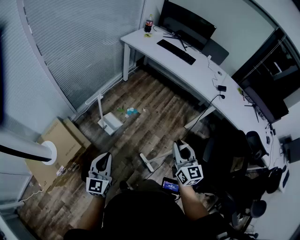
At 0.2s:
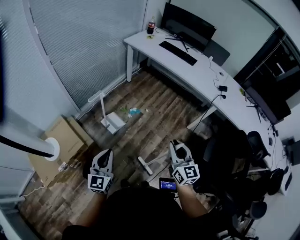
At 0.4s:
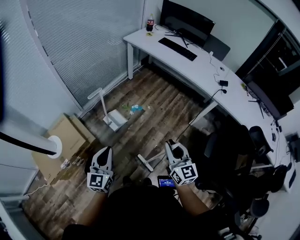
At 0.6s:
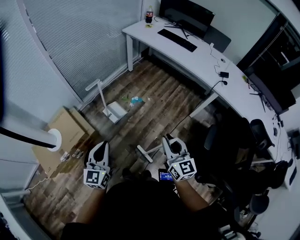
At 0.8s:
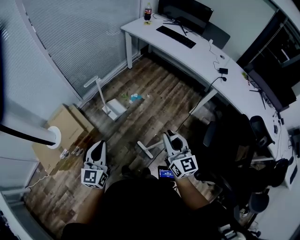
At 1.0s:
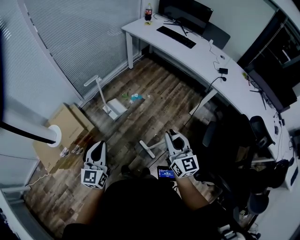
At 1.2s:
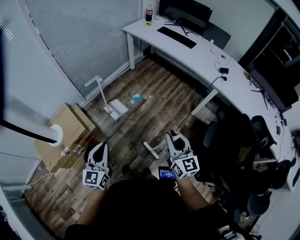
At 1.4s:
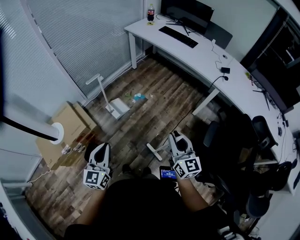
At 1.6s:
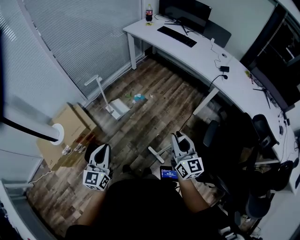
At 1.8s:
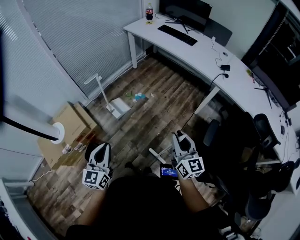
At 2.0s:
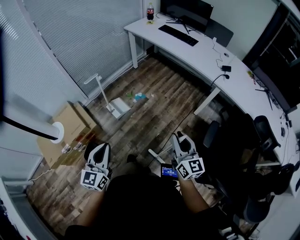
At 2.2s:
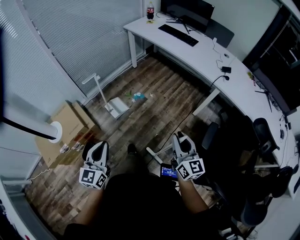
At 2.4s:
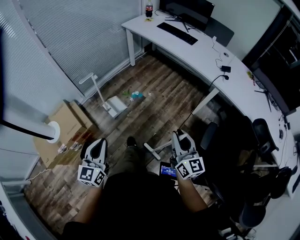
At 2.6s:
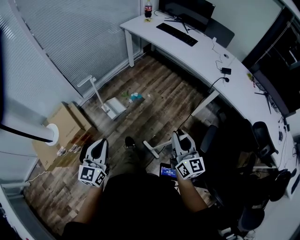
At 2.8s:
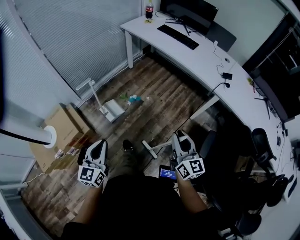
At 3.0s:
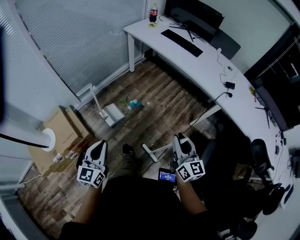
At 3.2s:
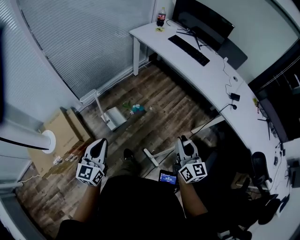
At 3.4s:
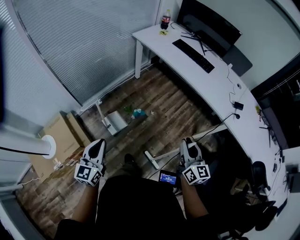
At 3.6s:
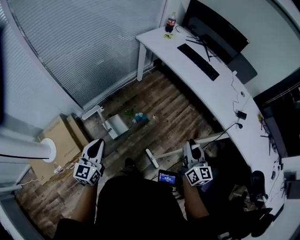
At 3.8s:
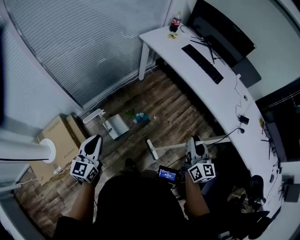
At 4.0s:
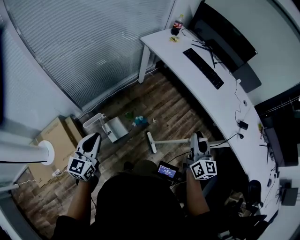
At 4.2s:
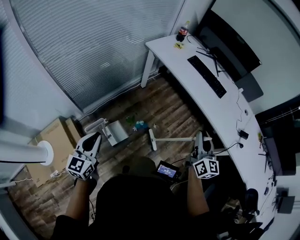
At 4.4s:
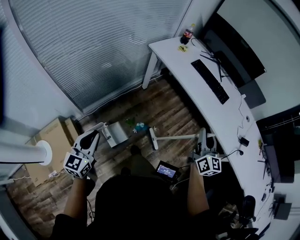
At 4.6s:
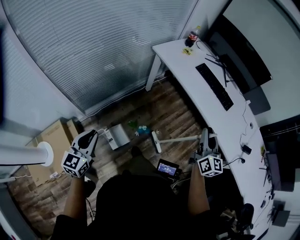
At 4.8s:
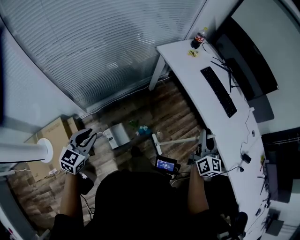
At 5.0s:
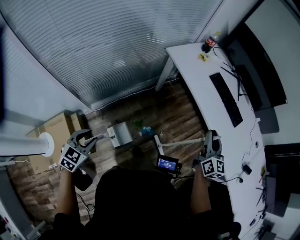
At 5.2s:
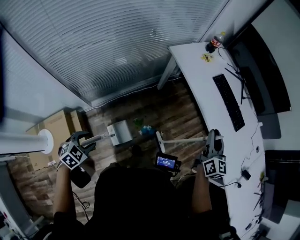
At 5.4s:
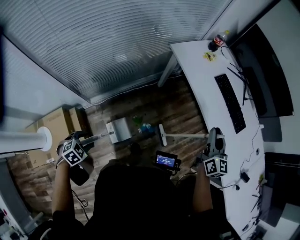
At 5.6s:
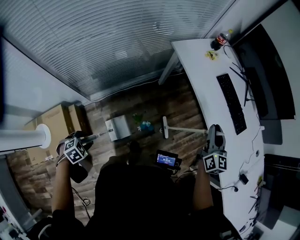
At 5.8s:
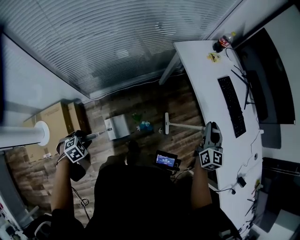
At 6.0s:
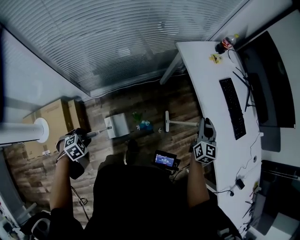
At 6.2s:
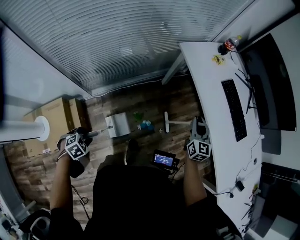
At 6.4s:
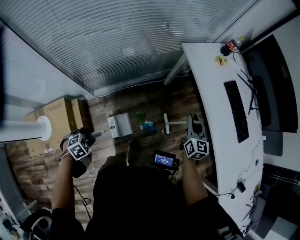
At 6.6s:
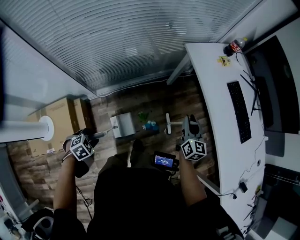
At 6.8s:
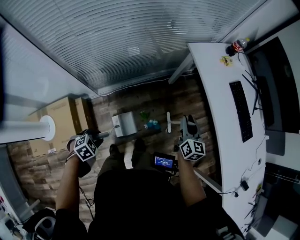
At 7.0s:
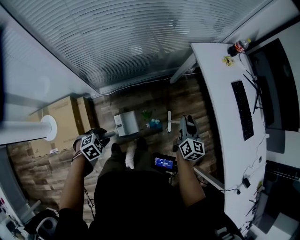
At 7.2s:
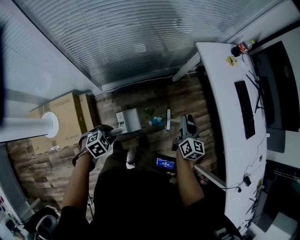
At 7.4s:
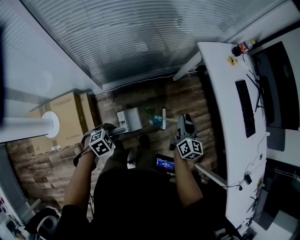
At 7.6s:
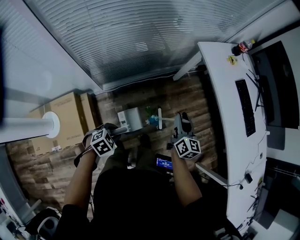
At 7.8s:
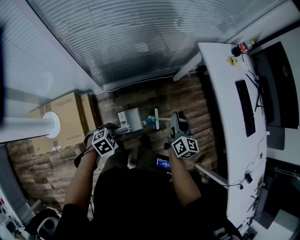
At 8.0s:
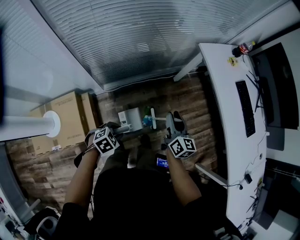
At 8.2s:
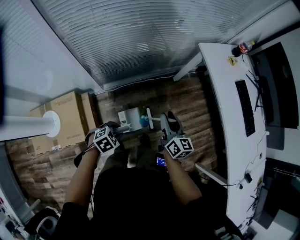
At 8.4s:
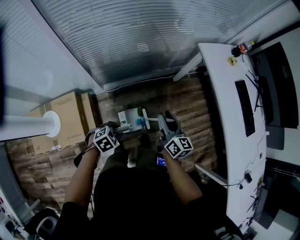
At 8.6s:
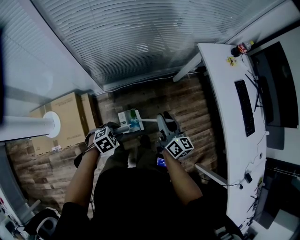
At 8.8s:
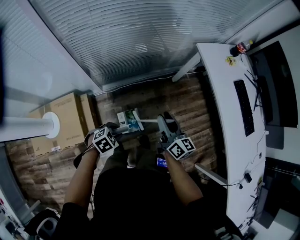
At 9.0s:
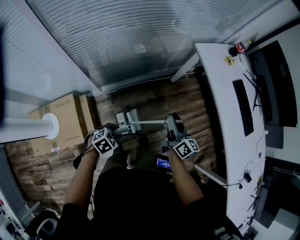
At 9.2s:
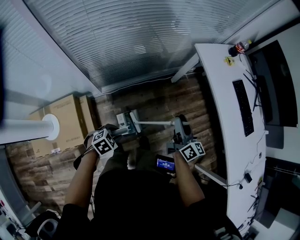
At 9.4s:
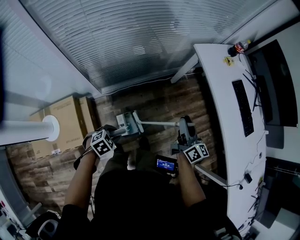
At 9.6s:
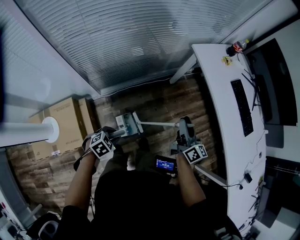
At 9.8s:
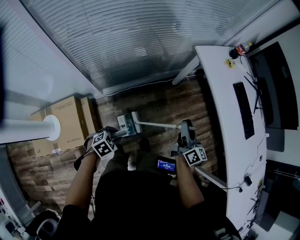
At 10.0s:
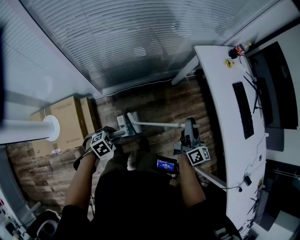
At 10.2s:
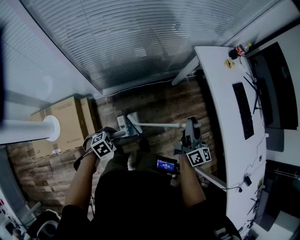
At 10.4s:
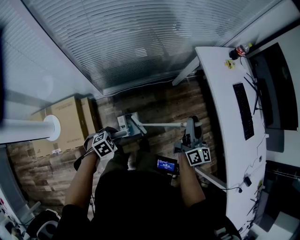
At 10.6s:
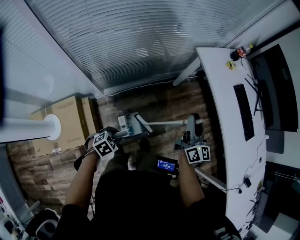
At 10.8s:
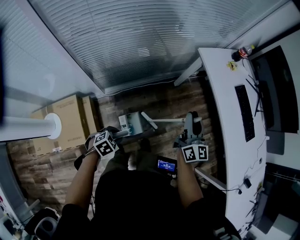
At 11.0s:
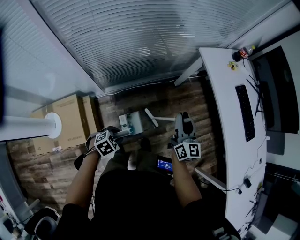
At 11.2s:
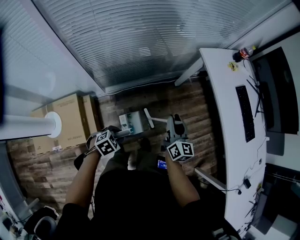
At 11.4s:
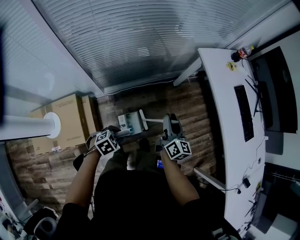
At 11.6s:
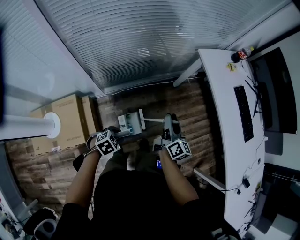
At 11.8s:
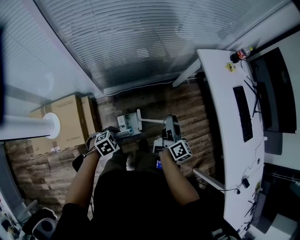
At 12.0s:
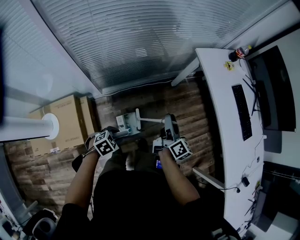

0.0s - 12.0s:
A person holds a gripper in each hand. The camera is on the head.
0.0s - 1.6s: Both grippers move backward and to the right, roughly 15 cm.
1.6s - 3.0s: The two grippers go some 15 cm forward.
3.0s - 4.4s: The right gripper shifts some 40 cm forward, while the left gripper shifts about 35 cm forward and to the left.
4.4s - 6.0s: The right gripper shifts by about 30 cm, and changes its angle by roughly 20 degrees, while the left gripper shifts about 20 cm downward, angles its fingers downward, by some 60 degrees, and opens.
6.0s - 7.6s: The right gripper changes place by roughly 25 cm, and rotates some 20 degrees.
7.6s - 9.0s: The right gripper changes its angle by approximately 20 degrees.
9.0s - 10.4s: The right gripper travels upward and to the right by roughly 10 cm.
10.4s - 12.0s: The right gripper shifts approximately 10 cm downward and to the left, and changes its angle by roughly 30 degrees.

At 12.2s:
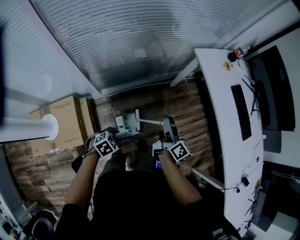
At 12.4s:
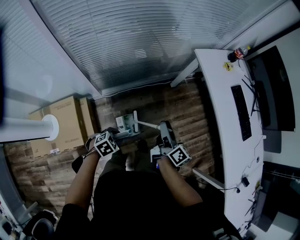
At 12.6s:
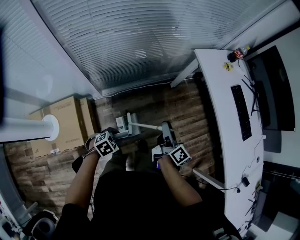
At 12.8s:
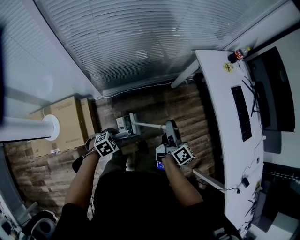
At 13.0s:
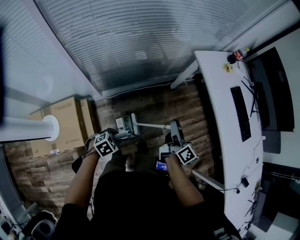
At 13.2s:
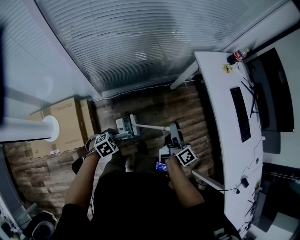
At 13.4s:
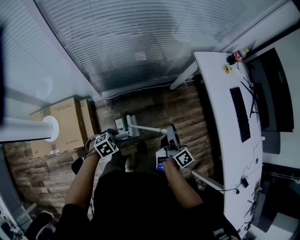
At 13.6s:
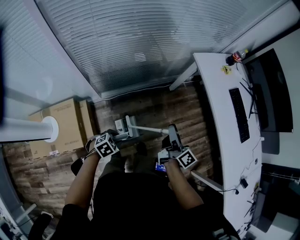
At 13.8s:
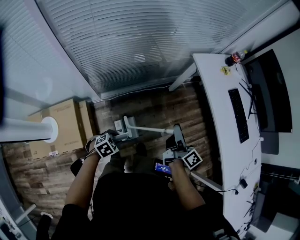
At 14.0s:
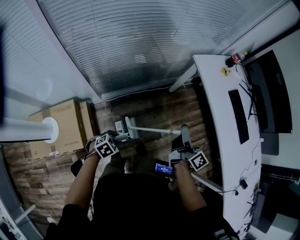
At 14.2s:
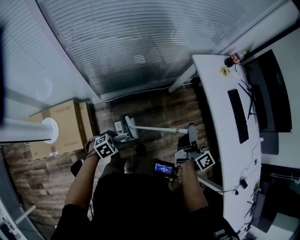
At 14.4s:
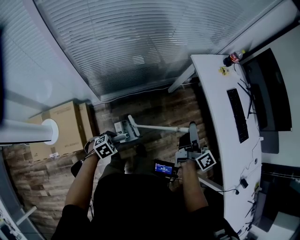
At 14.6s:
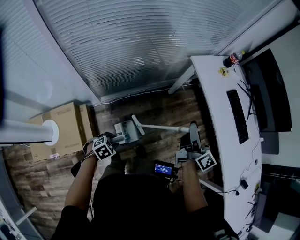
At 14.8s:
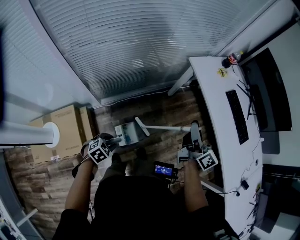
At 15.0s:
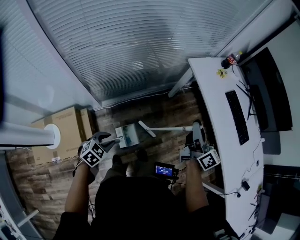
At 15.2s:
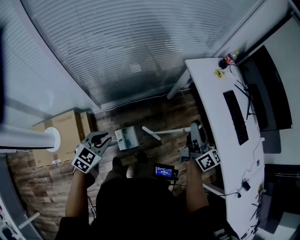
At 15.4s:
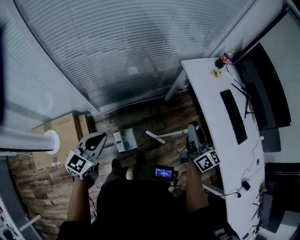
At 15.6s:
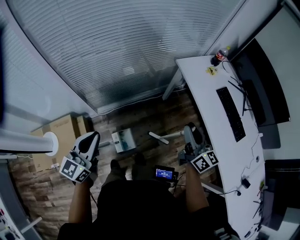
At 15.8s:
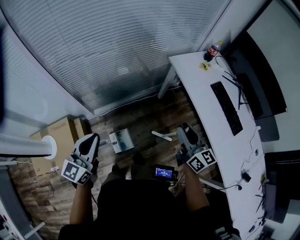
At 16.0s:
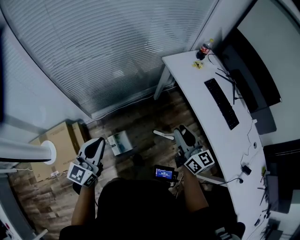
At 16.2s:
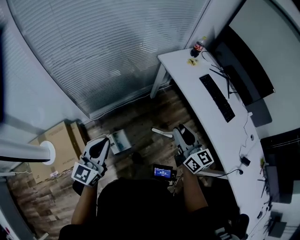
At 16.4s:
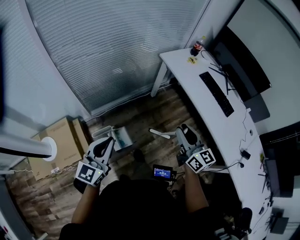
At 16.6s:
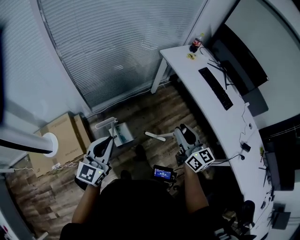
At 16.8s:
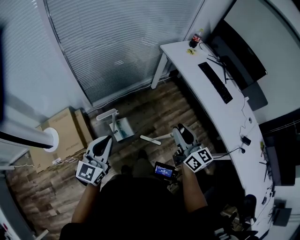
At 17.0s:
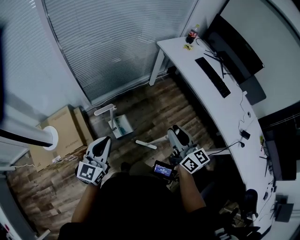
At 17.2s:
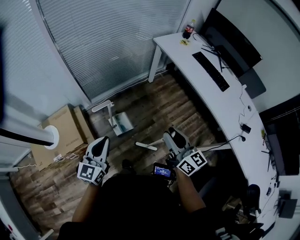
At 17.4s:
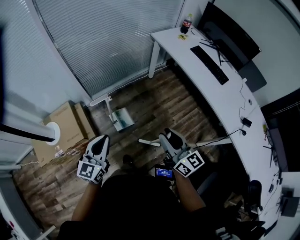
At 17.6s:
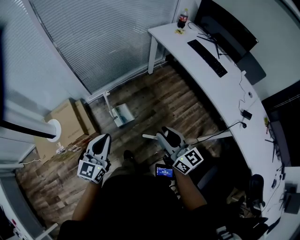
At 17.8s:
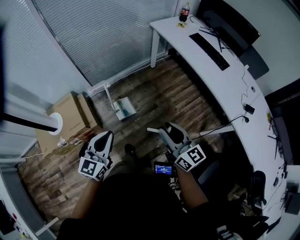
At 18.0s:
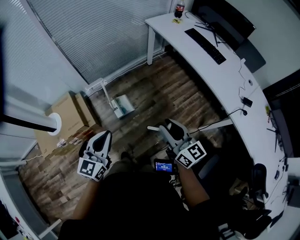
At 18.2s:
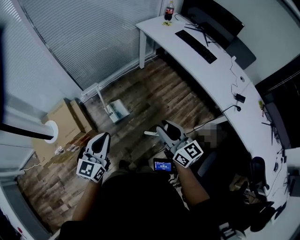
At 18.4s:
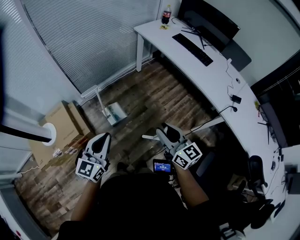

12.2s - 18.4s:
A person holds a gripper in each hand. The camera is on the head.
12.2s - 13.8s: The right gripper ends up approximately 5 cm from where it was.
13.8s - 15.4s: The right gripper is displaced upward and to the right by about 15 cm, and rotates about 30 degrees, while the left gripper goes approximately 25 cm upward, angles its fingers upward, by roughly 40 degrees, and closes its fingers.
15.4s - 16.8s: The two grippers go about 25 cm backward.
16.8s - 18.4s: The right gripper heads backward, covering some 20 cm. The left gripper goes about 20 cm backward and to the right.

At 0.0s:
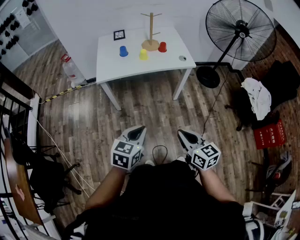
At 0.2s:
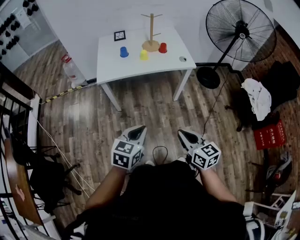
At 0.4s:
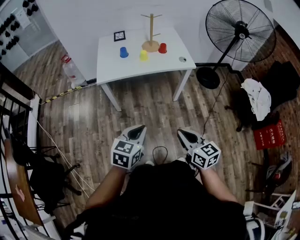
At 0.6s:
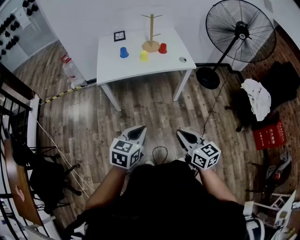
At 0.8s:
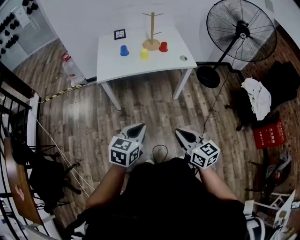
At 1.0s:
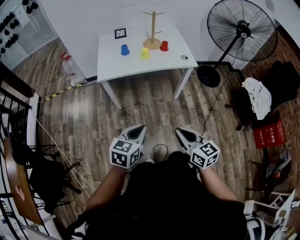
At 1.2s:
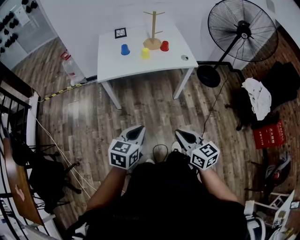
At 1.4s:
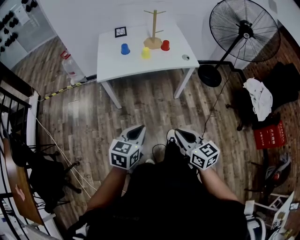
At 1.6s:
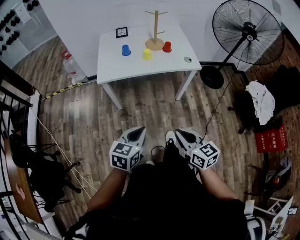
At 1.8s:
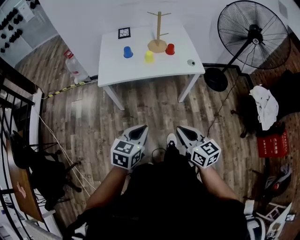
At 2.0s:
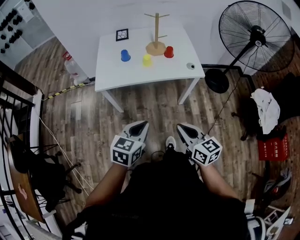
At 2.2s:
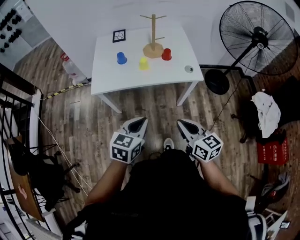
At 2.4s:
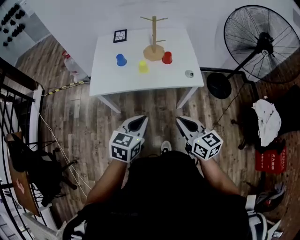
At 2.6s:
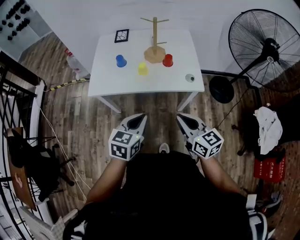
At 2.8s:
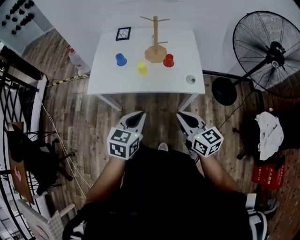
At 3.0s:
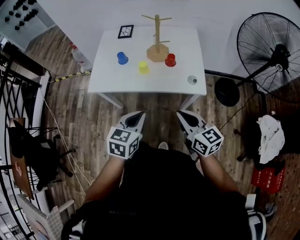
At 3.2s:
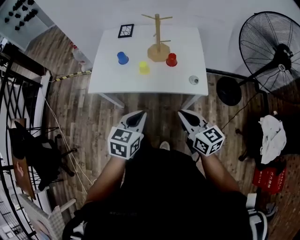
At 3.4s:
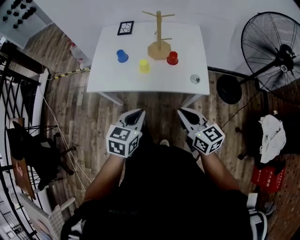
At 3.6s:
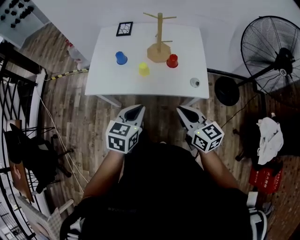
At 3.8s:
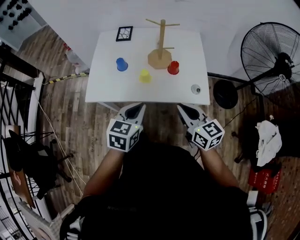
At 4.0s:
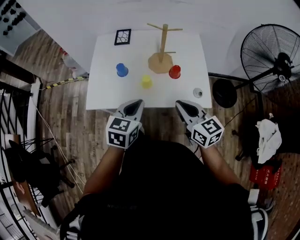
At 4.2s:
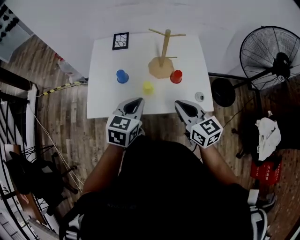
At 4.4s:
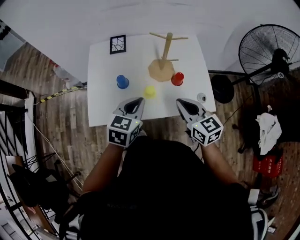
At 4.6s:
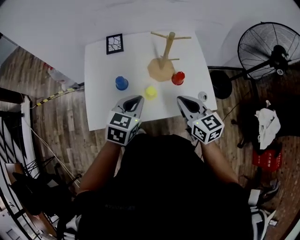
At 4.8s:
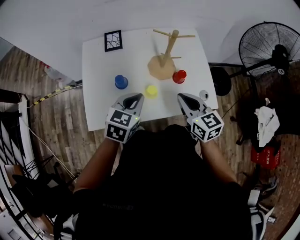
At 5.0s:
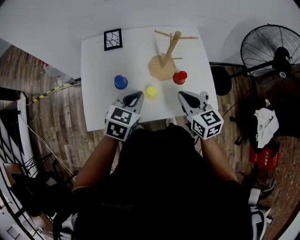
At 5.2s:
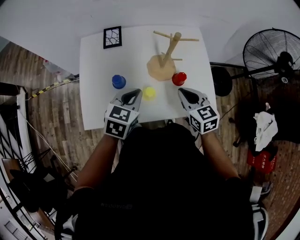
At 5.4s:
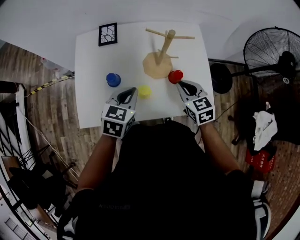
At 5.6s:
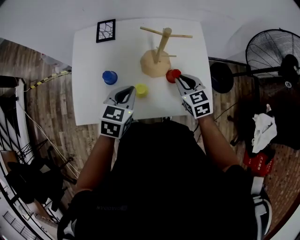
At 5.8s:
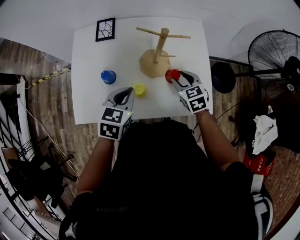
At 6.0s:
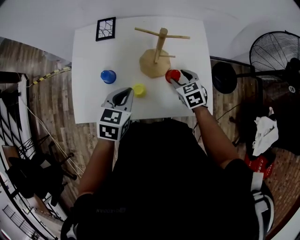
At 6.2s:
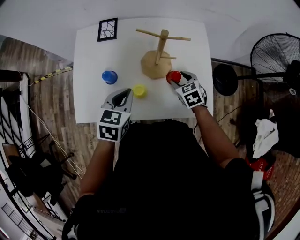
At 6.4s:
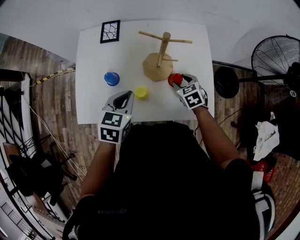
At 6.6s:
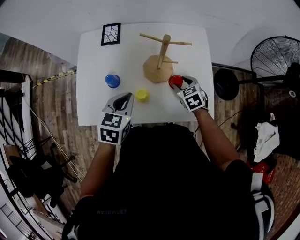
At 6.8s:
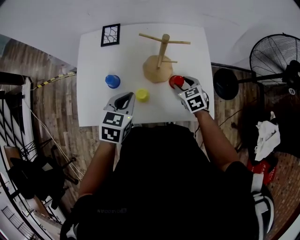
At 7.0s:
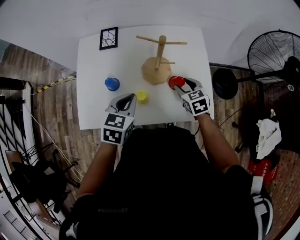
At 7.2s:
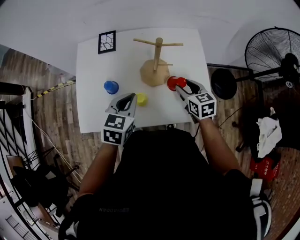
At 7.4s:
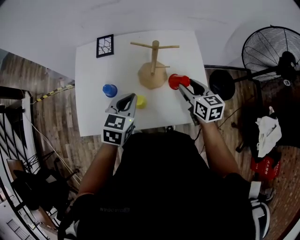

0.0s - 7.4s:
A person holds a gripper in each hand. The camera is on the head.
0.0s - 1.4s: The grippers stay close to where they were, moving slightly.
1.4s - 3.0s: Both grippers travel together forward and to the right, about 35 cm.
3.0s - 4.4s: The two grippers go approximately 25 cm forward.
4.4s - 6.0s: The left gripper is displaced forward and downward by some 10 cm. Meanwhile the right gripper moves forward and downward, some 25 cm, changes its angle by about 30 degrees, and opens up.
6.0s - 7.4s: The right gripper travels upward by about 10 cm, and swivels some 30 degrees.
